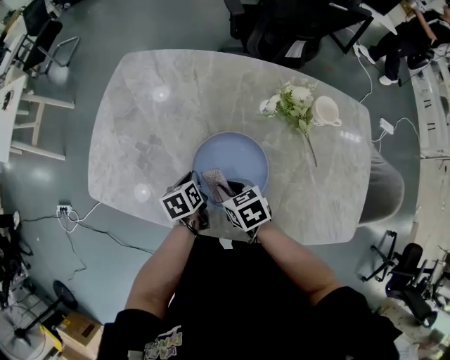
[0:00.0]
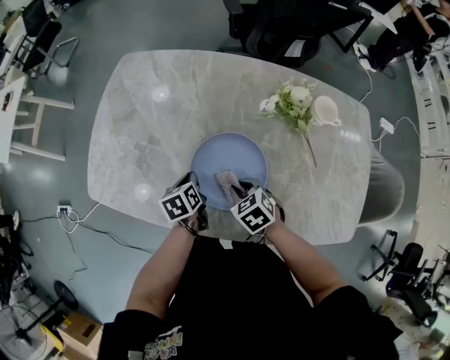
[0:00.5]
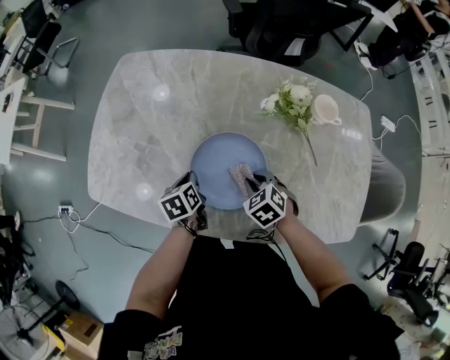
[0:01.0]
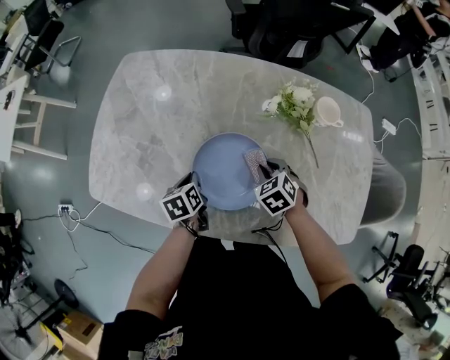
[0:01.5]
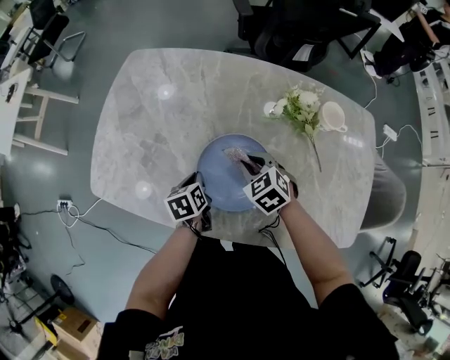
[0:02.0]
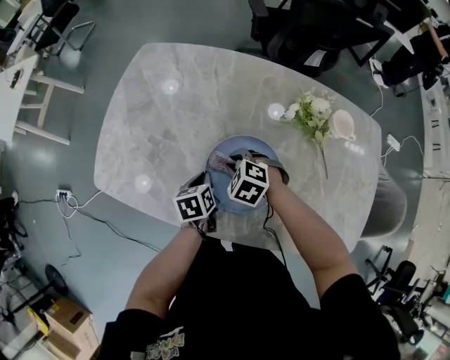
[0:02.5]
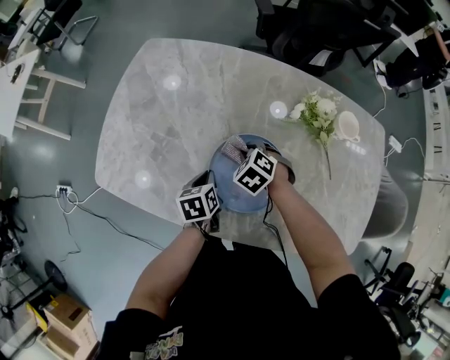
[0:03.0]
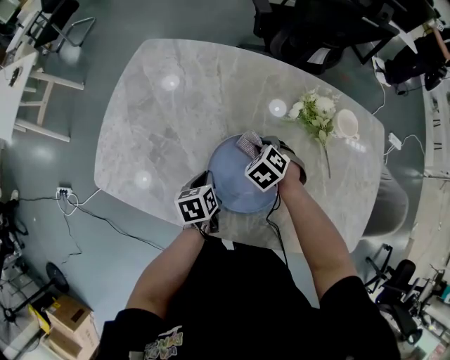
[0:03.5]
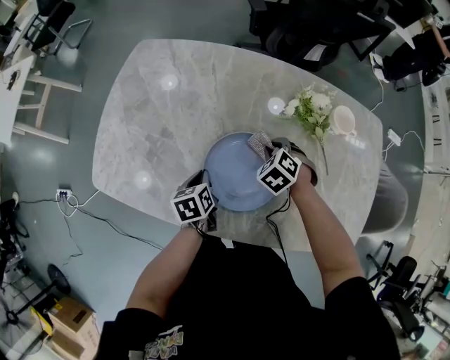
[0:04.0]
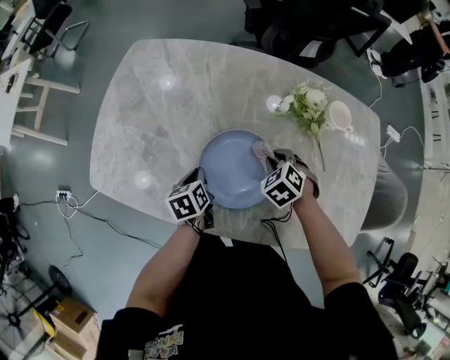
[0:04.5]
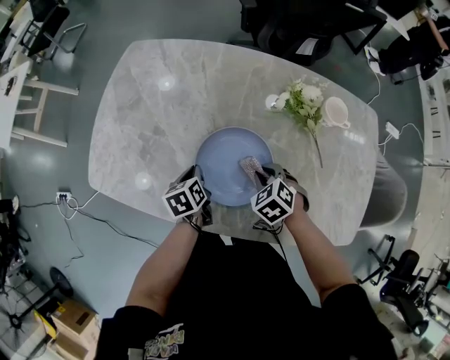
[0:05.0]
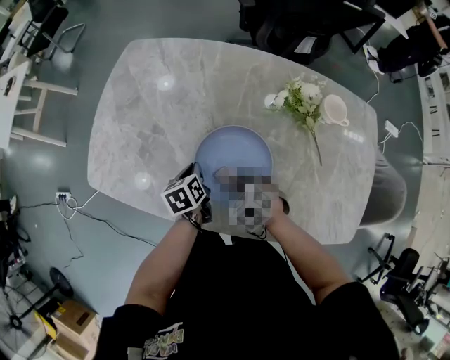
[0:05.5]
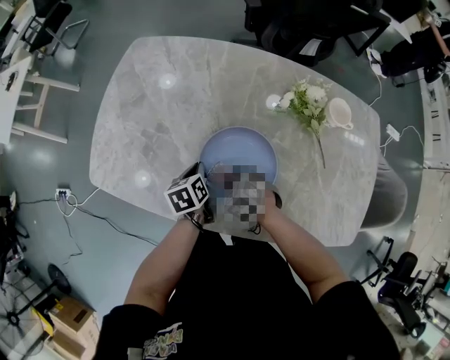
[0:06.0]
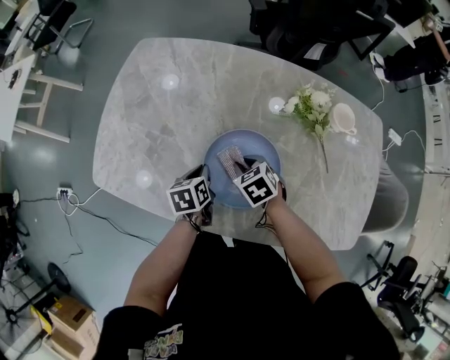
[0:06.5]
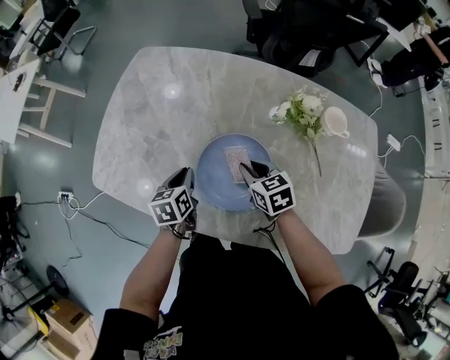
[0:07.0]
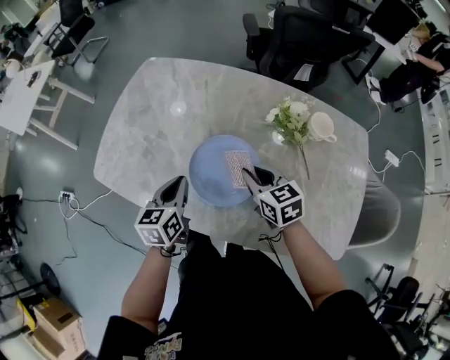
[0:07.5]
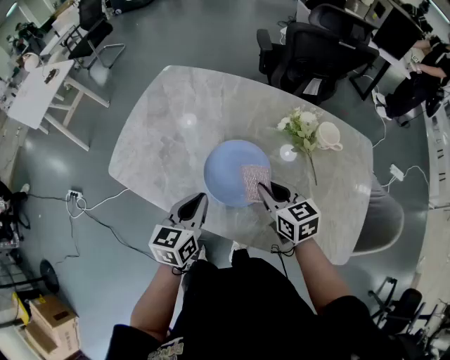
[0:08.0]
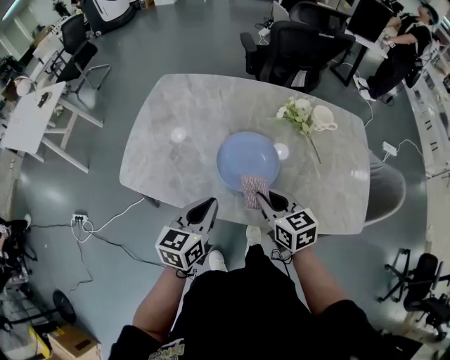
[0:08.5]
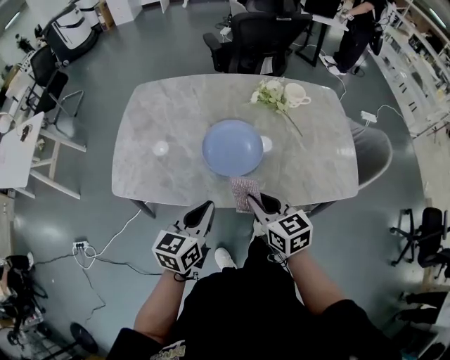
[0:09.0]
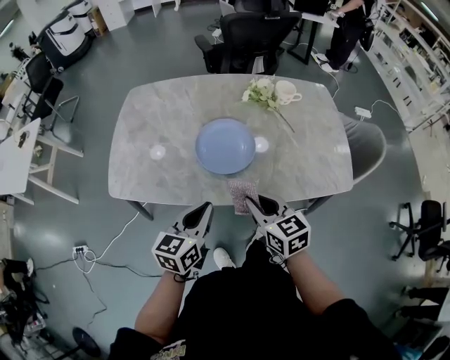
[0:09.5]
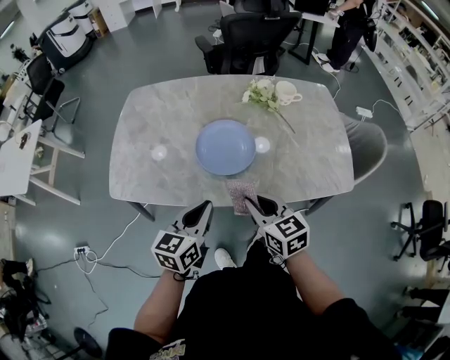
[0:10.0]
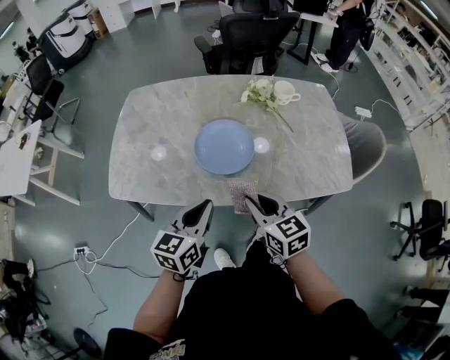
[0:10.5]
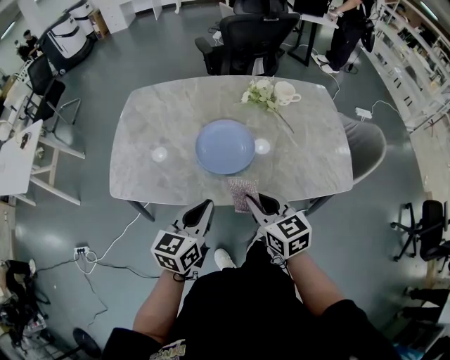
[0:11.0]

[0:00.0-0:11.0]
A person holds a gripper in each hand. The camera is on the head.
0:00.0 to 0:02.0: The right gripper is displaced forward and to the right by roughly 10 cm, and changes its angle by approximately 30 degrees.
0:02.0 to 0:03.5: The right gripper heads forward, covering some 5 cm, travels to the left and back again, roughly 5 cm each way, and turns by approximately 20 degrees.
0:03.5 to 0:05.5: The right gripper heads backward, covering approximately 15 cm.
0:05.5 to 0:07.5: The right gripper shifts about 15 cm upward and to the right, and tips its fingers upward by some 30 degrees; the left gripper goes about 15 cm upward and backward, and turns by about 30 degrees.
0:07.5 to 0:09.0: The right gripper goes some 25 cm backward and to the left, and swivels approximately 20 degrees; the left gripper heads backward and upward, covering some 20 cm, and turns by some 30 degrees.
0:09.0 to 0:11.0: There are only small adjustments of the grippers.

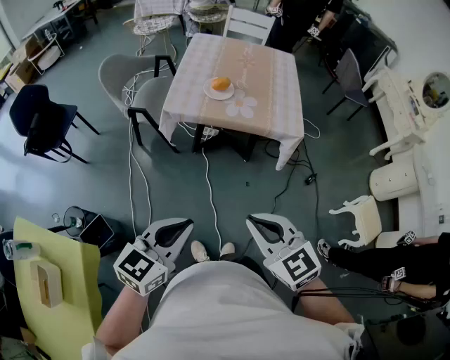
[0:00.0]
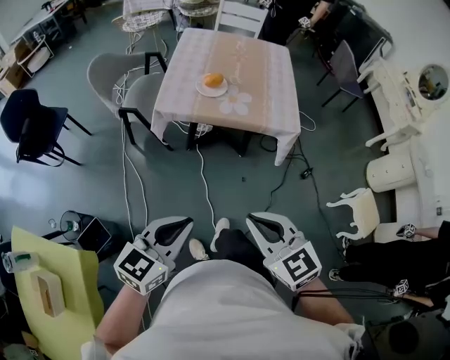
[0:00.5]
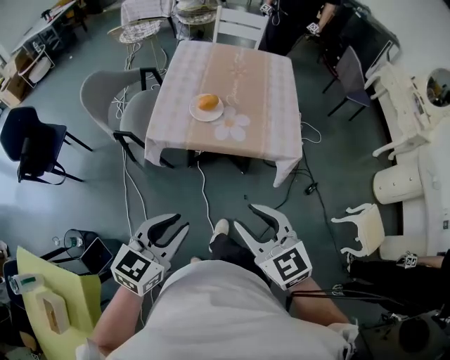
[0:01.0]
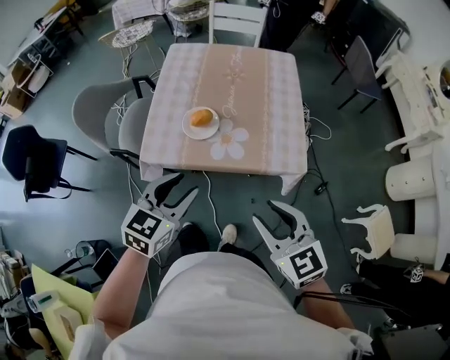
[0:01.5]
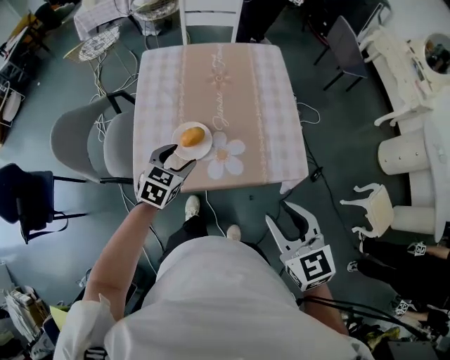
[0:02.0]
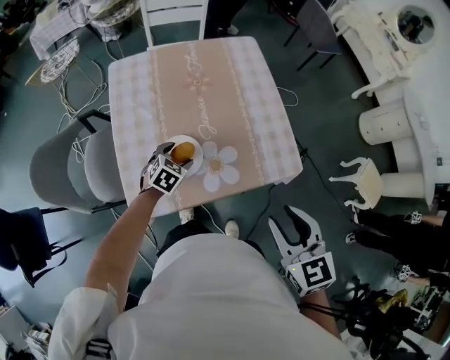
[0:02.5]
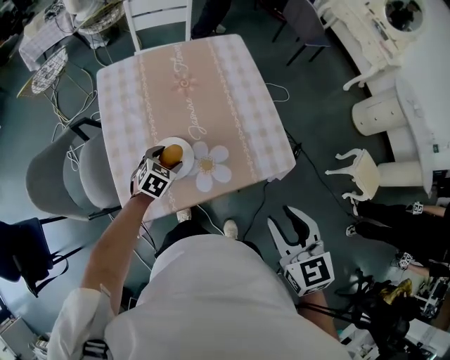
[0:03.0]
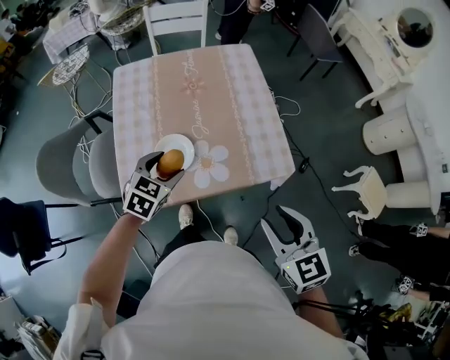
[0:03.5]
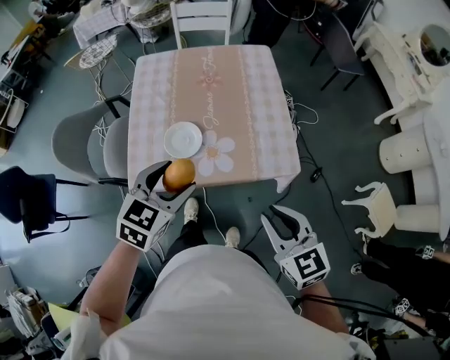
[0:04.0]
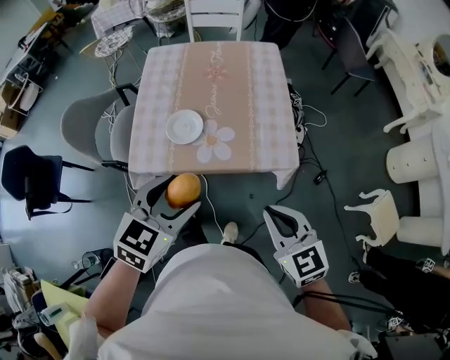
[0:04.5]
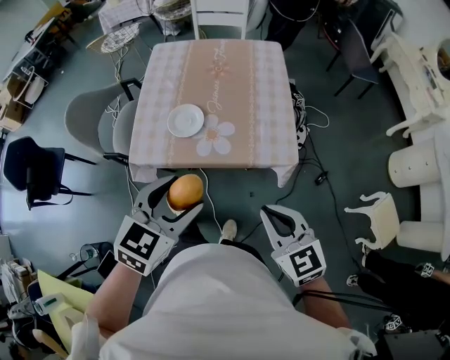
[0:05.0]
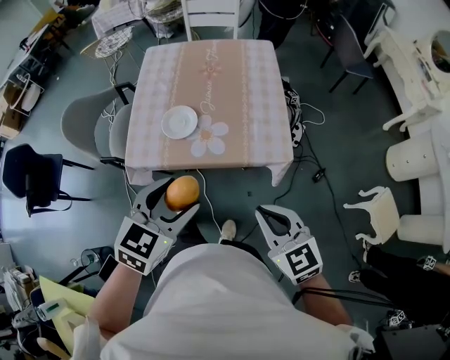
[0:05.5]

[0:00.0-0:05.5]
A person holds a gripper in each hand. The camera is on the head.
0:00.0 to 0:02.0: The left gripper travels forward by some 60 cm, rotates roughly 30 degrees, and opens up; the right gripper shifts about 35 cm forward, changes its angle by about 30 degrees, and opens its fingers.
0:02.0 to 0:03.5: The left gripper travels downward and back again, roughly 10 cm each way.
0:03.5 to 0:05.5: The left gripper goes about 30 cm backward, upward and to the right. Meanwhile the right gripper shifts approximately 10 cm backward and to the right, changes its angle by some 20 degrees, and closes up.

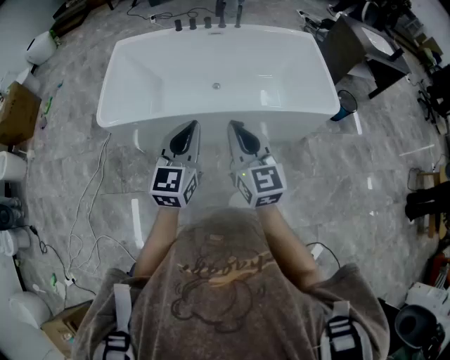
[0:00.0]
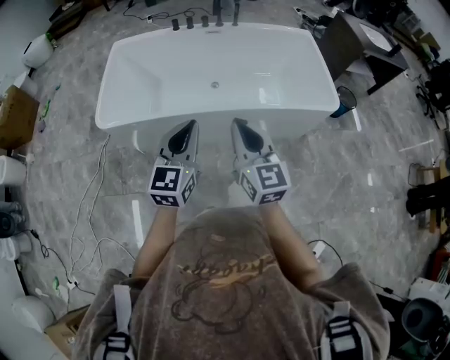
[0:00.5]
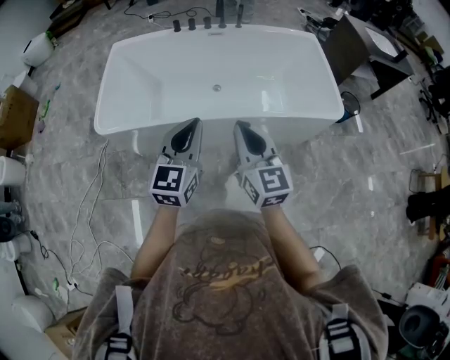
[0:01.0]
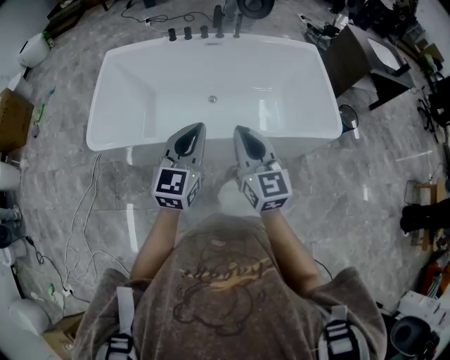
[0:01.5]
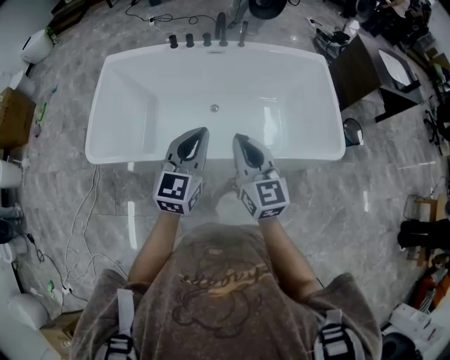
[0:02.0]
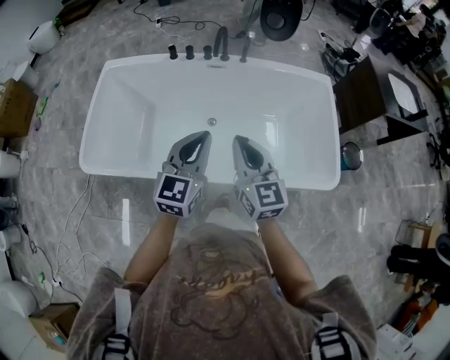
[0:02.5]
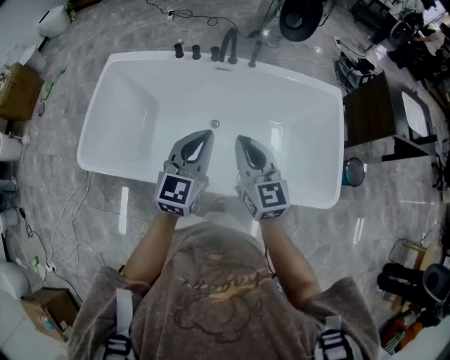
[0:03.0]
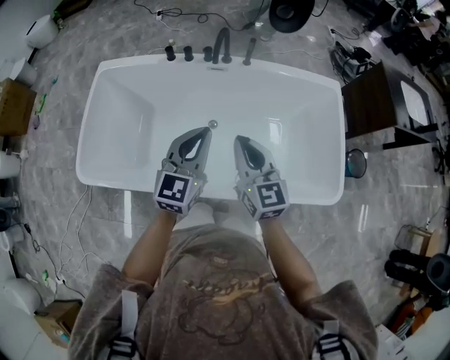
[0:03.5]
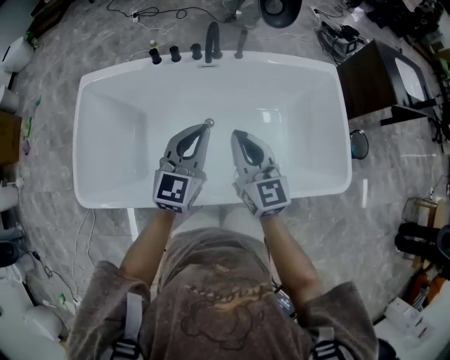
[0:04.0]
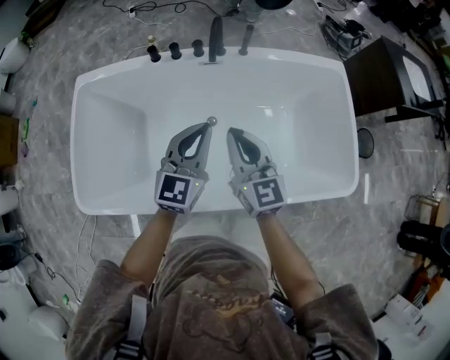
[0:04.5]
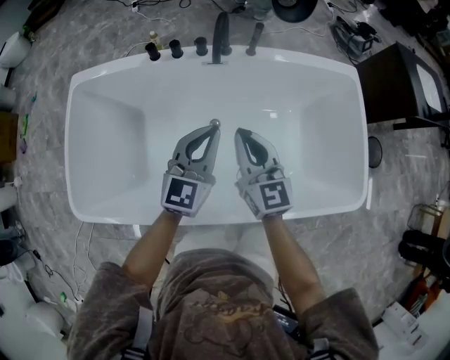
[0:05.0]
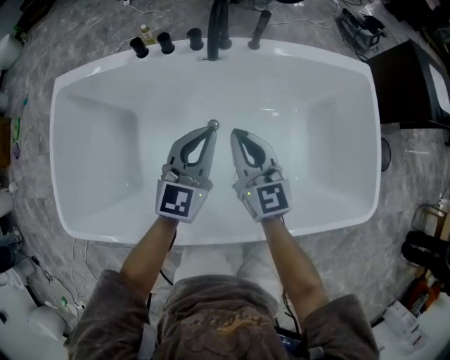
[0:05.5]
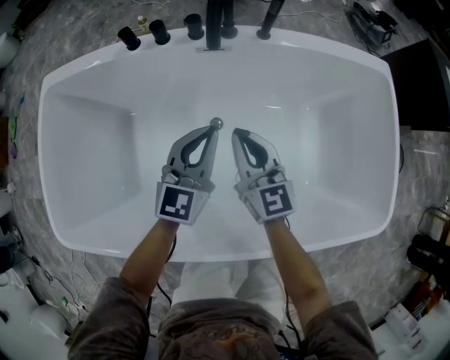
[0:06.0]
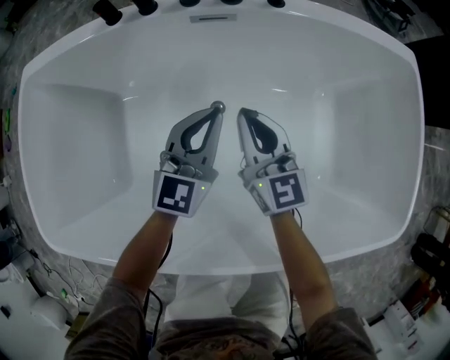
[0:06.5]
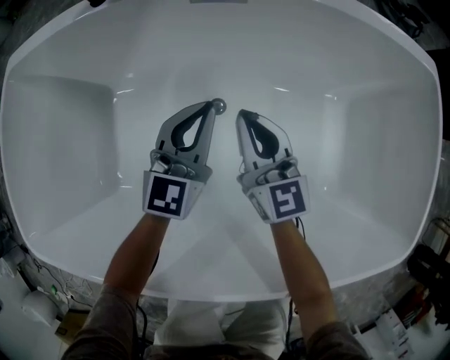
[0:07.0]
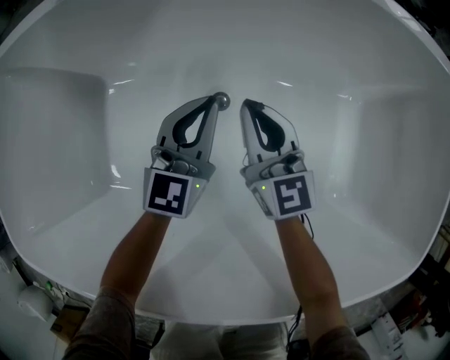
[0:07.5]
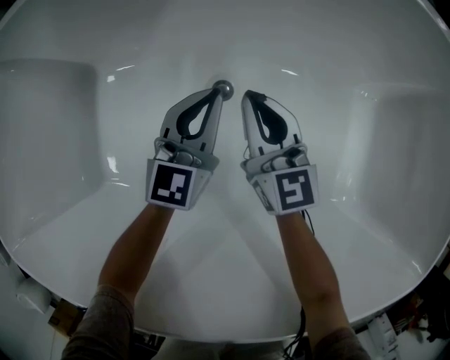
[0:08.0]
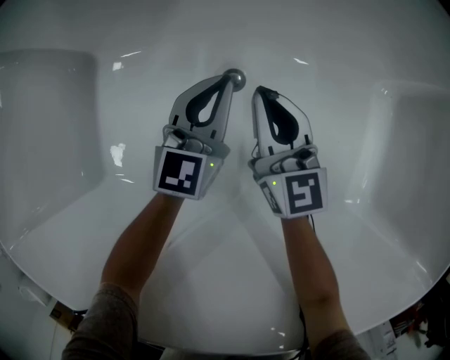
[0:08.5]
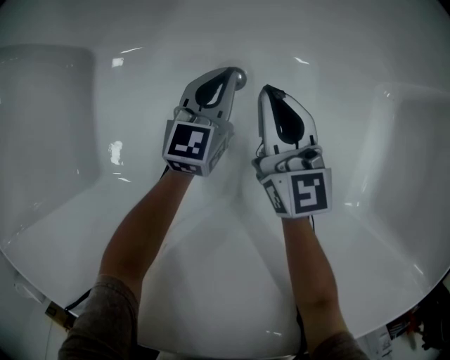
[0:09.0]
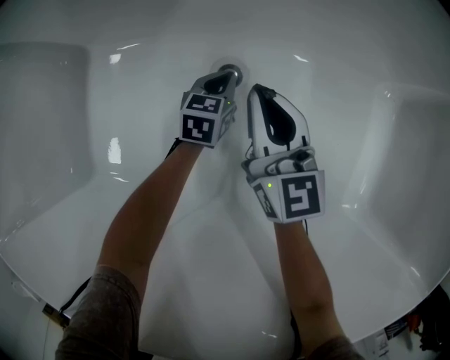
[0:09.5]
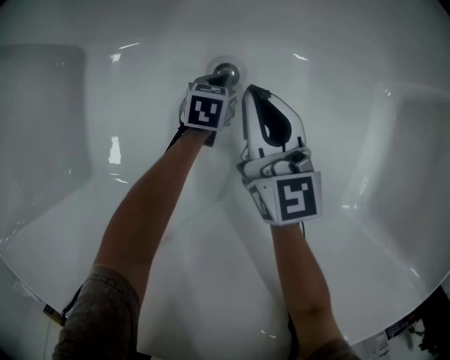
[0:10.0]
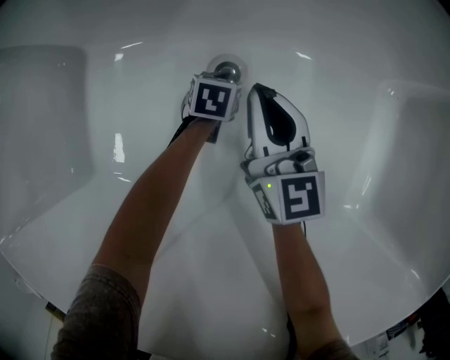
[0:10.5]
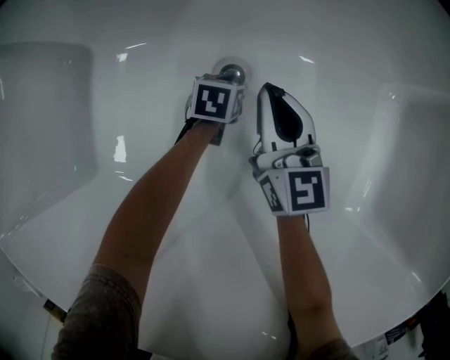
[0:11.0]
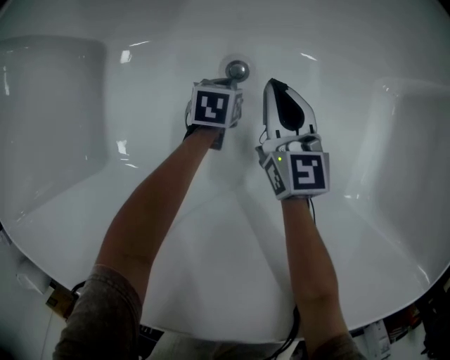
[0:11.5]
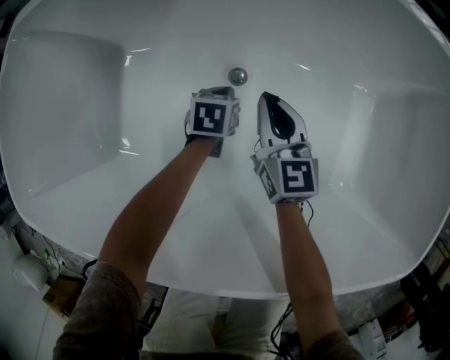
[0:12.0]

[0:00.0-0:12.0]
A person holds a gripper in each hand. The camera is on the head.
0:00.0 to 0:02.0: Both grippers move forward, approximately 25 cm.
0:02.0 to 0:04.0: The grippers both shift forward by roughly 25 cm.
0:04.0 to 0:06.0: The two grippers go roughly 30 cm downward and forward.
0:06.0 to 0:08.0: Both grippers move downward, roughly 30 cm.
0:08.0 to 0:10.0: The right gripper is displaced downward by roughly 5 cm, while the left gripper travels downward by approximately 30 cm, and points its fingers some 40 degrees further downward.
0:10.0 to 0:12.0: The right gripper travels upward by about 10 cm. The left gripper heads upward and backward, covering some 20 cm.
